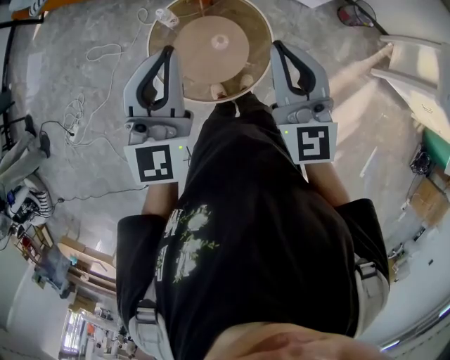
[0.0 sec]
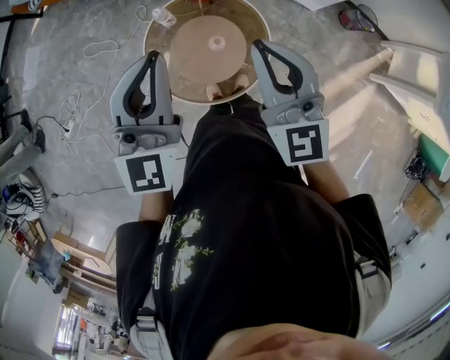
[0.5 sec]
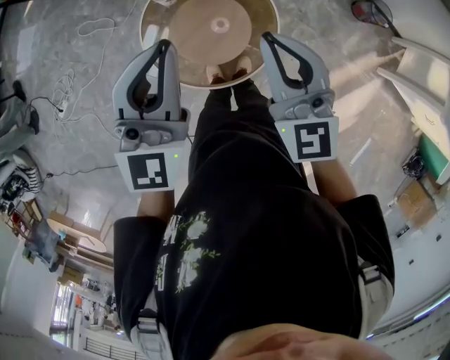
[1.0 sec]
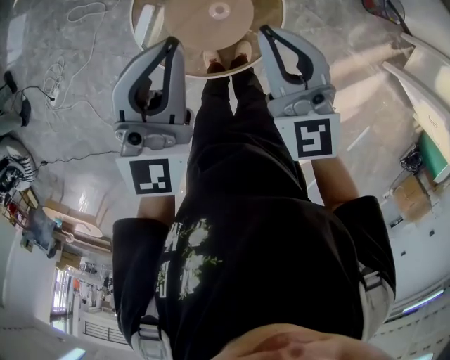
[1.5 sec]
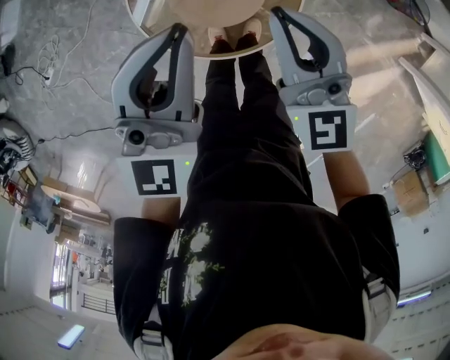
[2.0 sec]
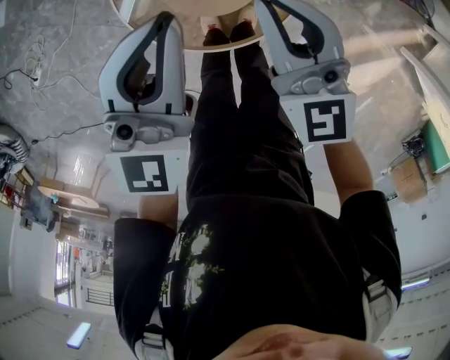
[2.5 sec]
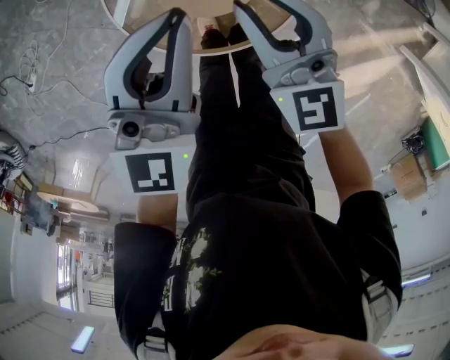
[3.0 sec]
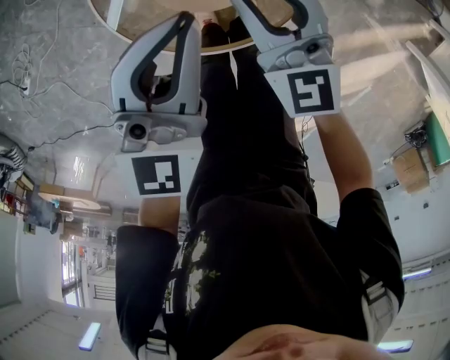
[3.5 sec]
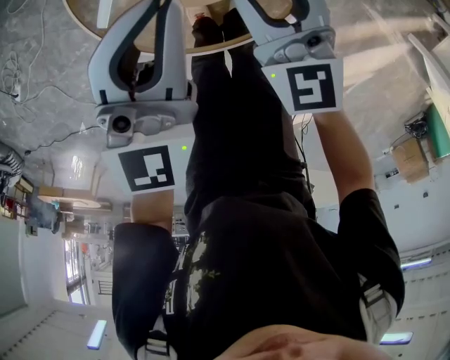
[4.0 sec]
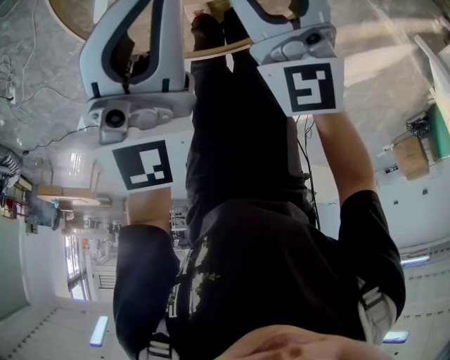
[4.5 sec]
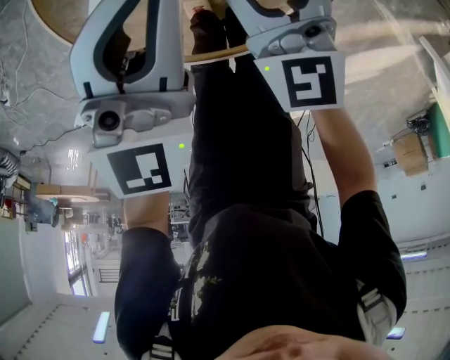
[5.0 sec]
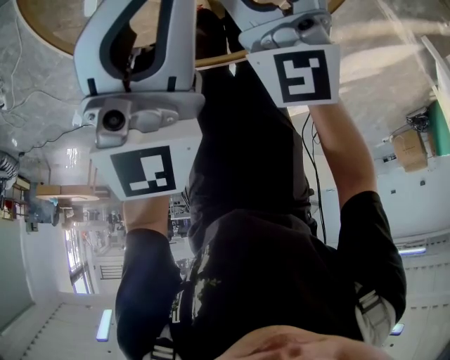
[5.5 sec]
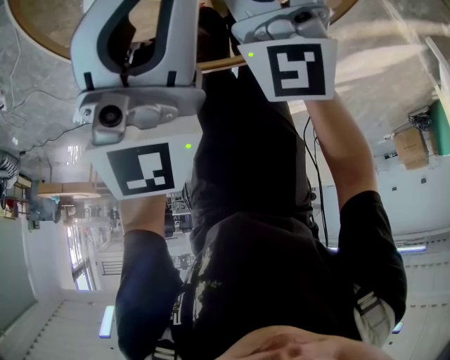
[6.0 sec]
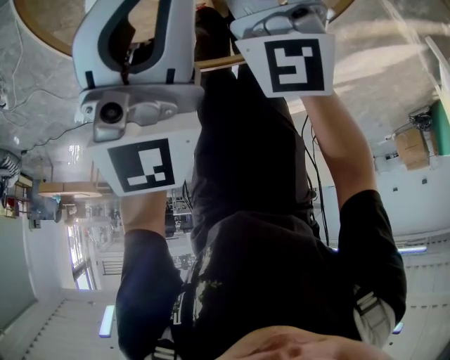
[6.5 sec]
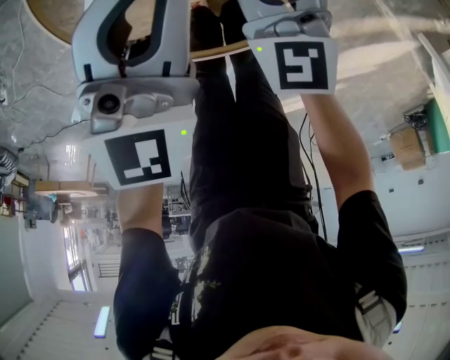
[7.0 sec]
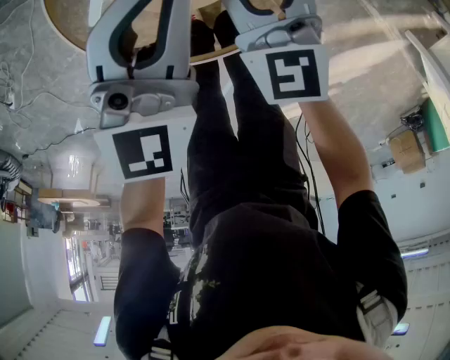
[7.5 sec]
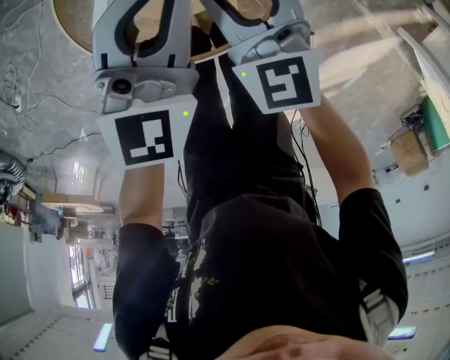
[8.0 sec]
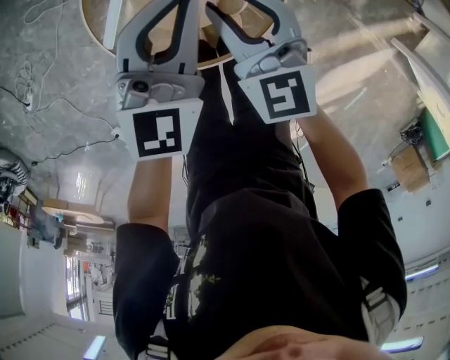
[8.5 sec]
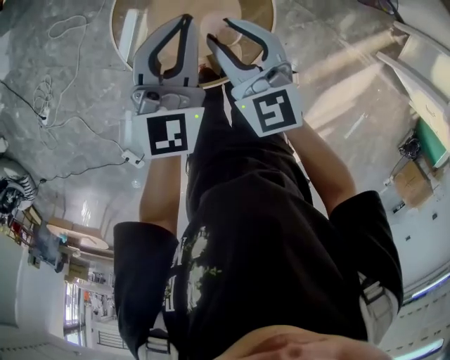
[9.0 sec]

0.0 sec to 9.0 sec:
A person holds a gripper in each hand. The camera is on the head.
0.0 sec to 2.0 sec: The grippers both shift downward by some 25 cm.
2.0 sec to 4.5 sec: Both grippers travel together downward, about 35 cm. The right gripper opens up.
4.5 sec to 7.0 sec: Both grippers move downward, approximately 10 cm.
7.0 sec to 9.0 sec: Both grippers move upward, about 40 cm.

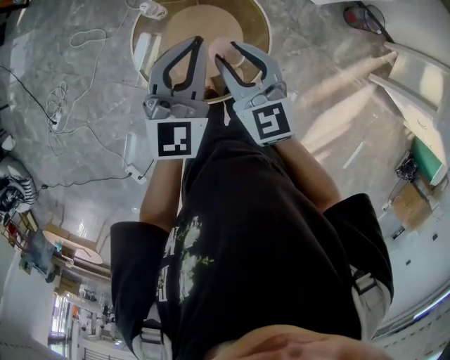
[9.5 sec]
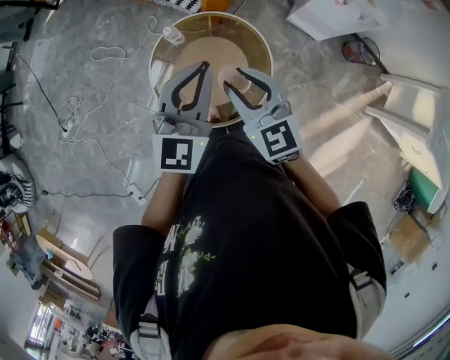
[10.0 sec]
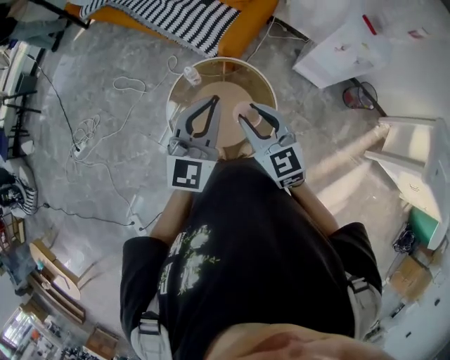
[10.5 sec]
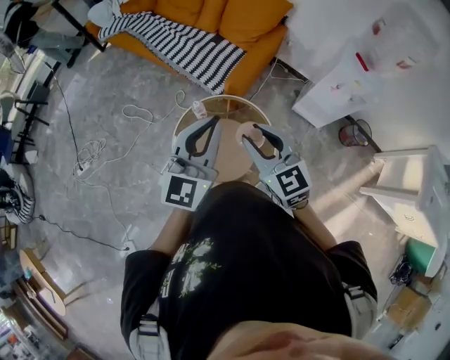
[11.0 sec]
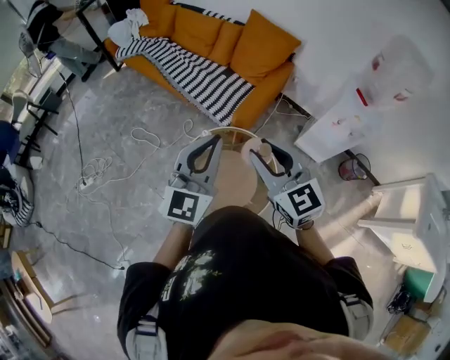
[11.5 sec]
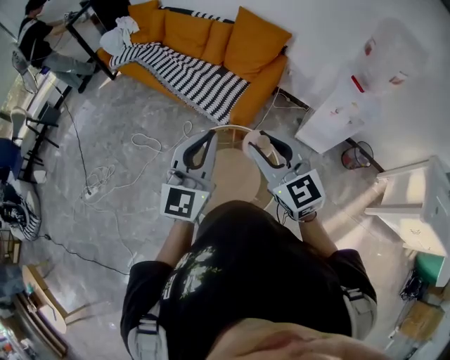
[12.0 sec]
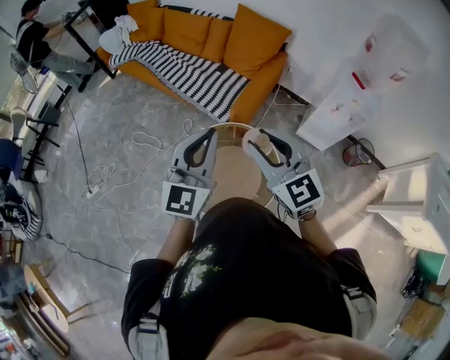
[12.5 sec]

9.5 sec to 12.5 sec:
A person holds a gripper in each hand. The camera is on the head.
9.5 sec to 11.0 sec: The two grippers go some 25 cm upward.
11.0 sec to 12.5 sec: The right gripper heads upward, covering approximately 10 cm.

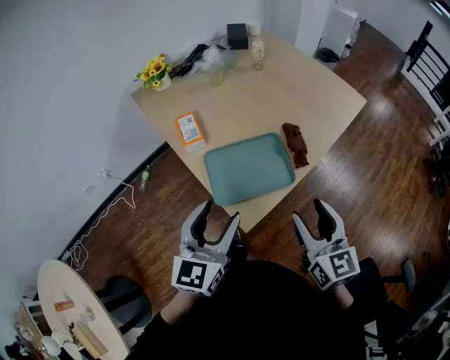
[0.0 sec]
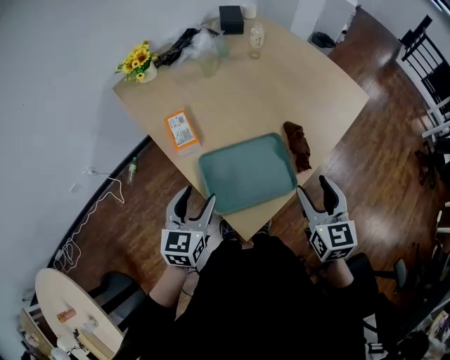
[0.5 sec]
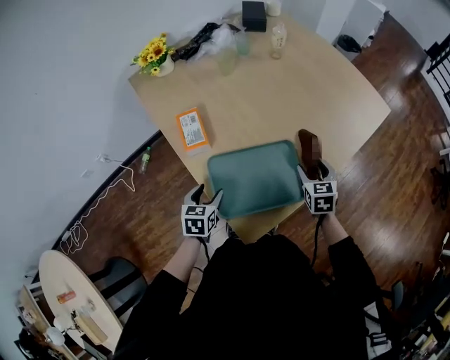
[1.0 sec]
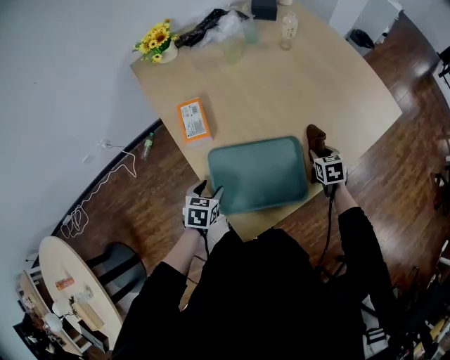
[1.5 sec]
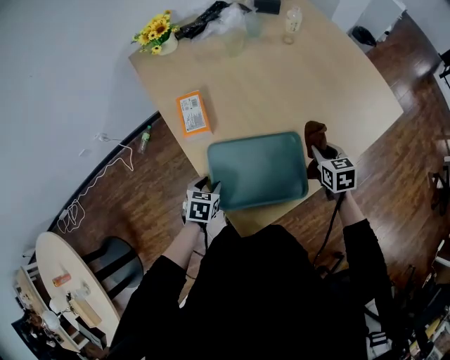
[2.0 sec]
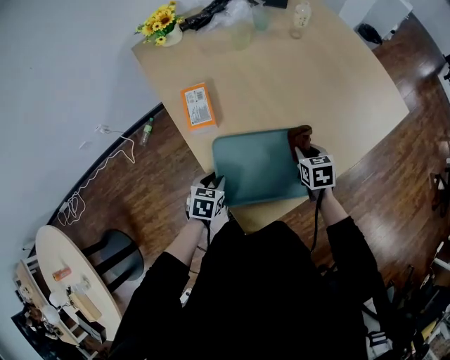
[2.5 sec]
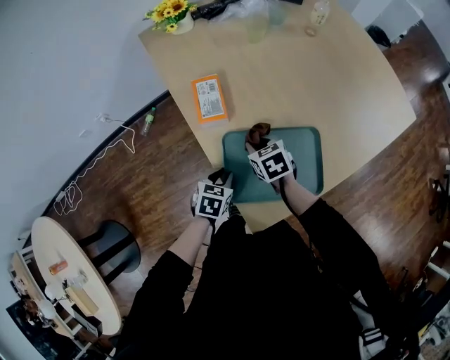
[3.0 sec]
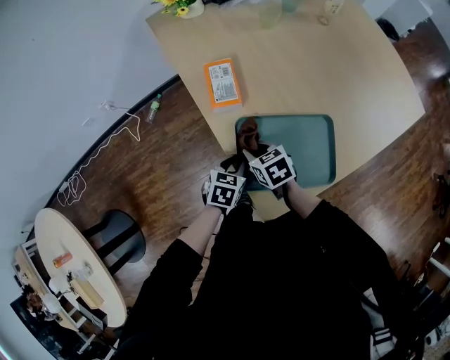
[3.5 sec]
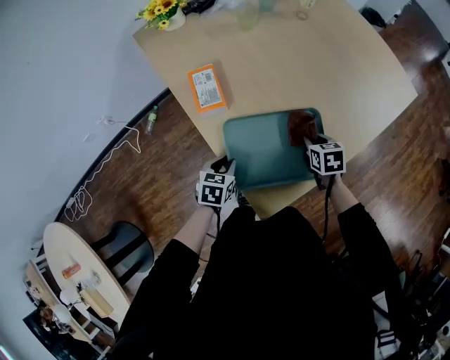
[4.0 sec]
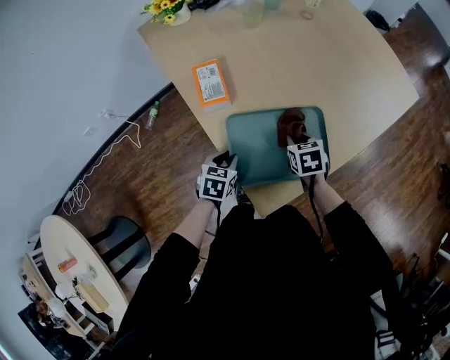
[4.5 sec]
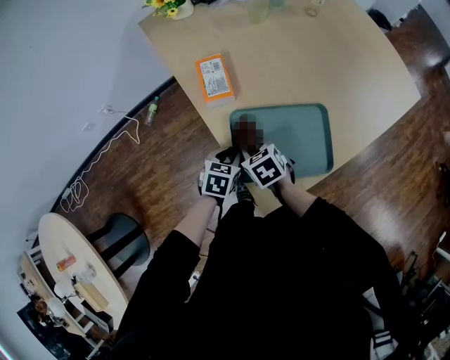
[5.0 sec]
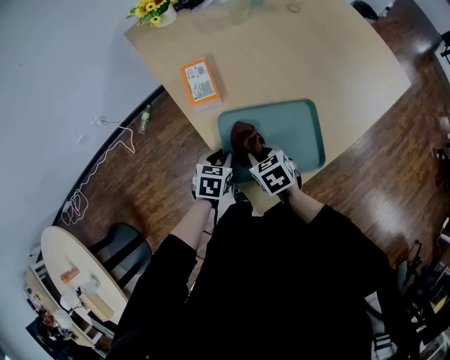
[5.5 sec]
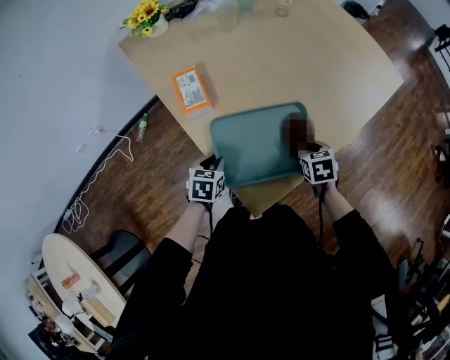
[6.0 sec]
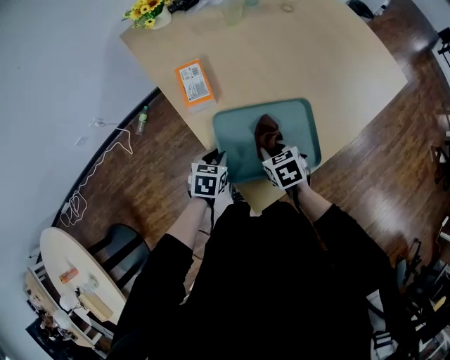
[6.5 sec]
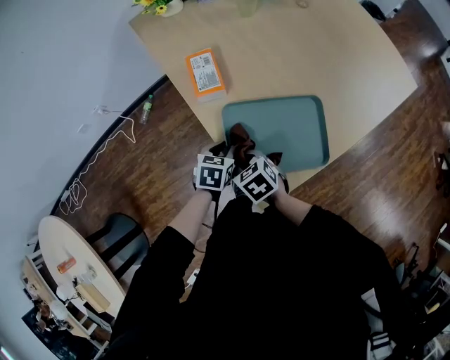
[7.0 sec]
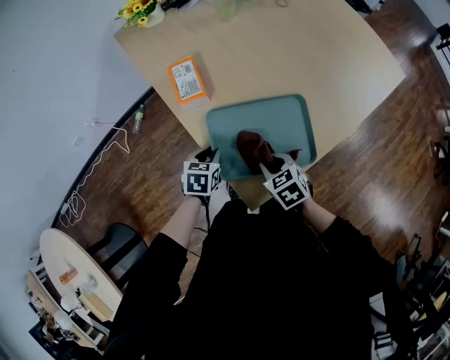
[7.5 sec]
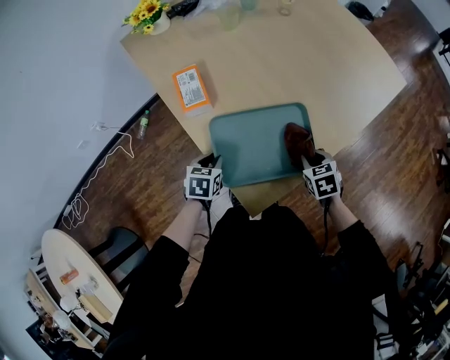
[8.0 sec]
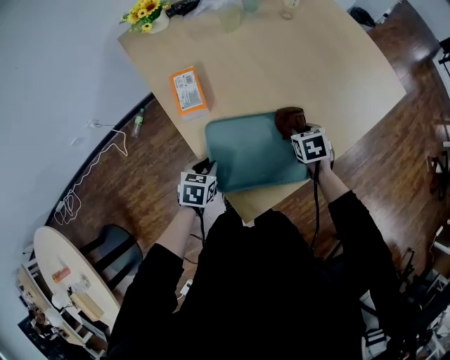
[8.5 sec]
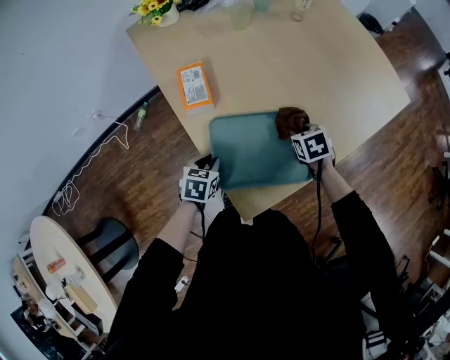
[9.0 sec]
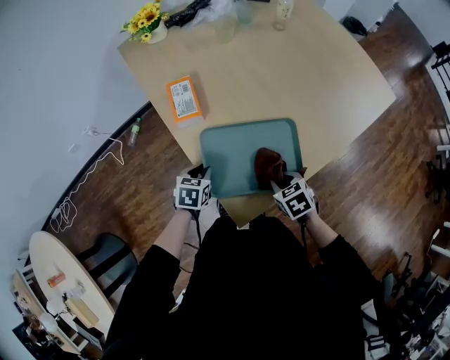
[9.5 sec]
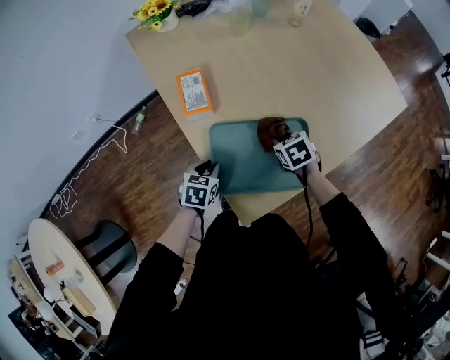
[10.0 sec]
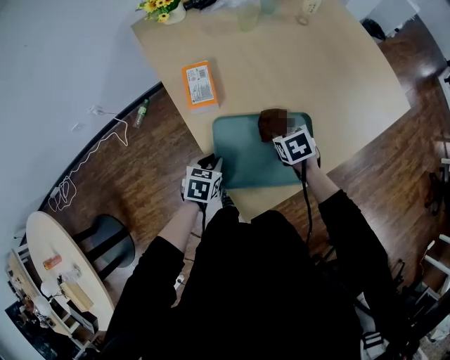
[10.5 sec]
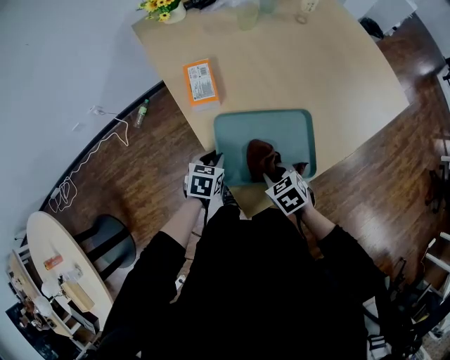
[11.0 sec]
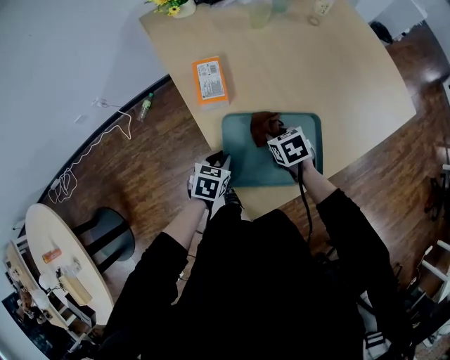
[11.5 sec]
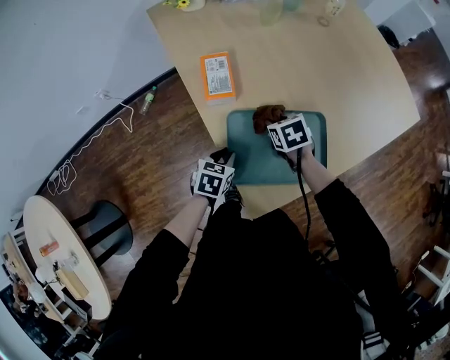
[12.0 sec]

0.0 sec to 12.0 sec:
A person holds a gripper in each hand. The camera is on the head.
0.0 sec to 2.0 sec: The left gripper heads downward and forward, covering about 35 cm, and points its fingers some 50 degrees further downward, while the right gripper heads forward and downward, covering about 40 cm, tips its fingers downward by roughly 30 degrees, and closes up.
2.0 sec to 4.0 sec: The left gripper closes. The right gripper travels downward by some 5 cm, and reaches about 30 cm to the left, then returns.
4.0 sec to 6.0 sec: The right gripper goes about 5 cm backward, and travels to the left and back again, about 25 cm each way.
6.0 sec to 8.0 sec: The right gripper reaches about 25 cm to the left, then returns.
8.0 sec to 10.0 sec: The right gripper moves forward and backward over approximately 15 cm, changing direction 2 times.
10.0 sec to 12.0 sec: The right gripper heads to the left, covering approximately 10 cm, and travels backward and back again, about 15 cm each way.

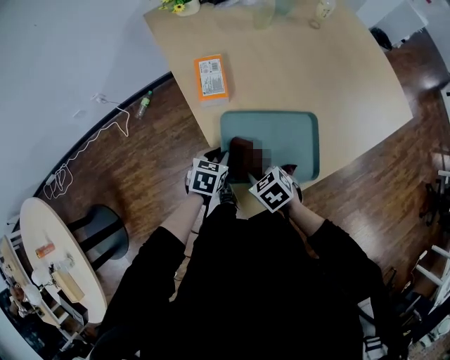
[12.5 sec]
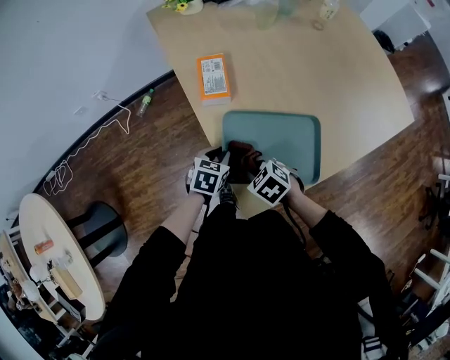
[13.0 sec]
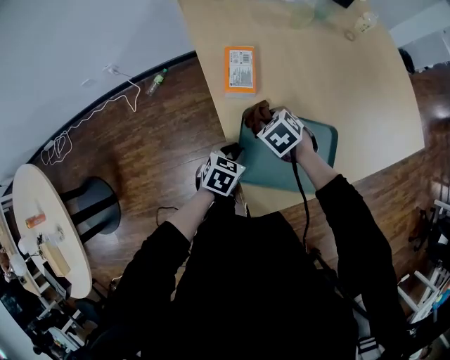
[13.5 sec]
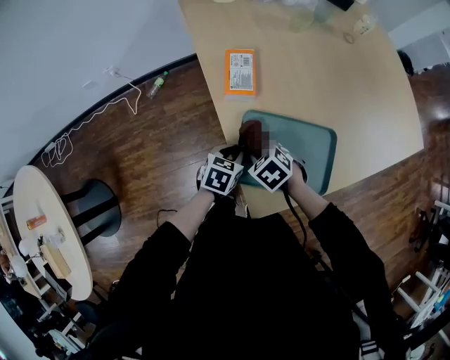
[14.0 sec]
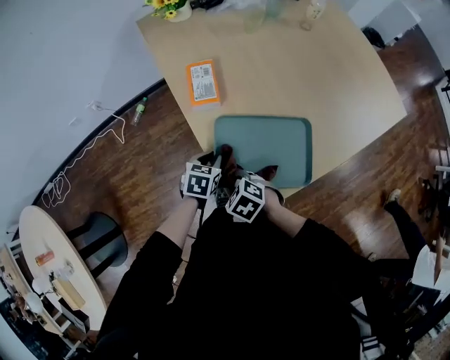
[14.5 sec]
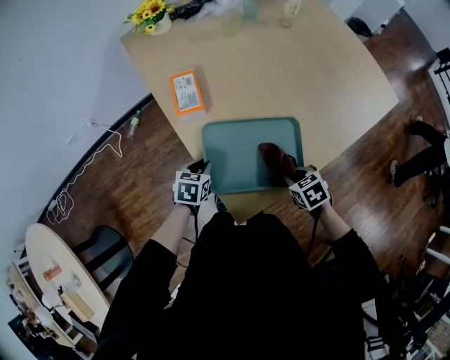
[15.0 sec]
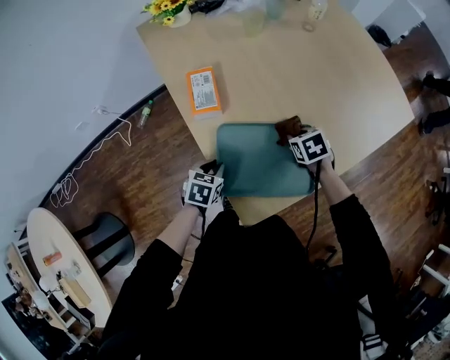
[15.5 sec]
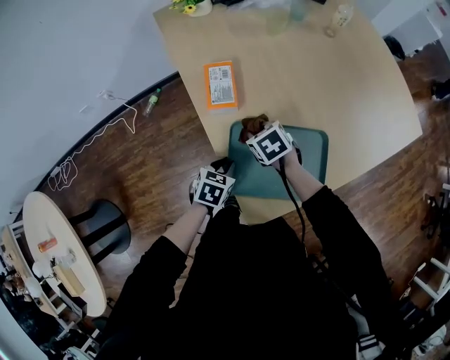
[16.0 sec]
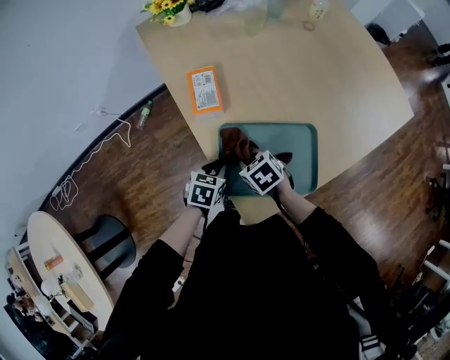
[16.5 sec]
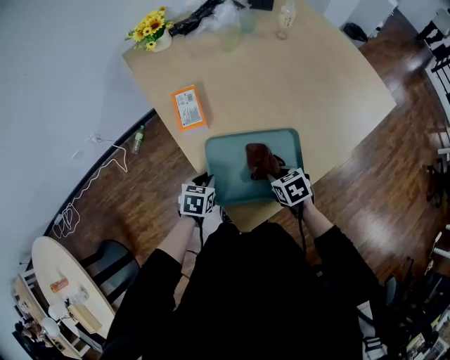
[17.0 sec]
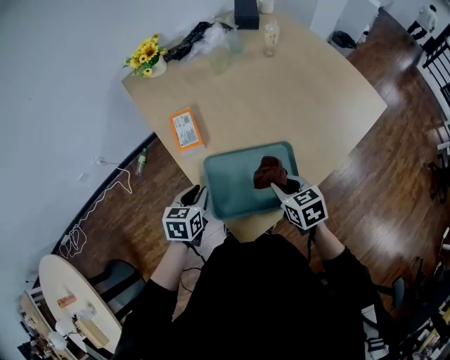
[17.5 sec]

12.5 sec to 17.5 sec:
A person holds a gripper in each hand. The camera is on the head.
12.5 sec to 15.0 sec: The right gripper heads to the right, covering about 15 cm.
15.0 sec to 17.5 sec: The left gripper shifts some 10 cm upward; the right gripper heads upward and forward, covering roughly 10 cm, goes to the left and returns, approximately 20 cm each way, and rotates roughly 20 degrees.
